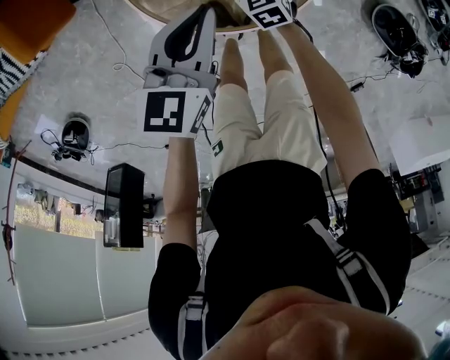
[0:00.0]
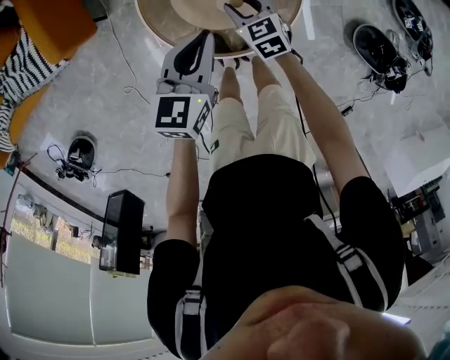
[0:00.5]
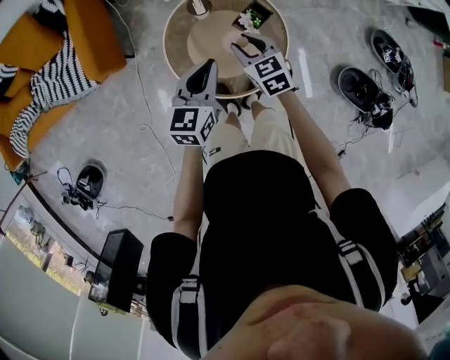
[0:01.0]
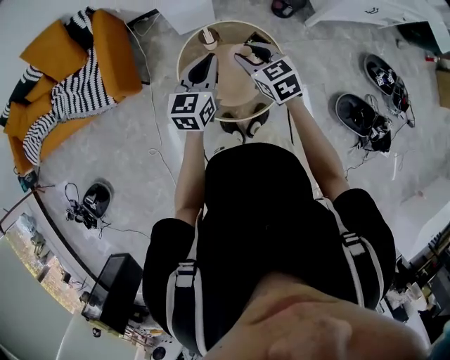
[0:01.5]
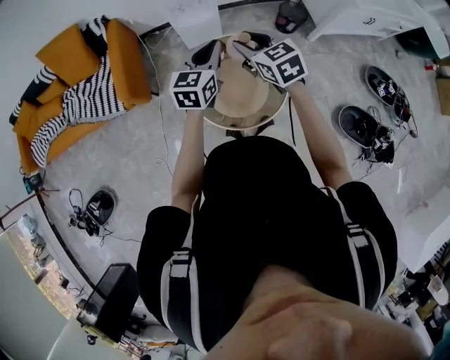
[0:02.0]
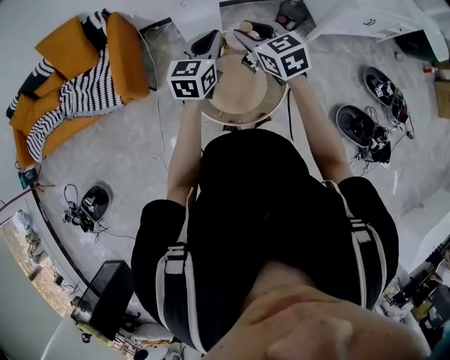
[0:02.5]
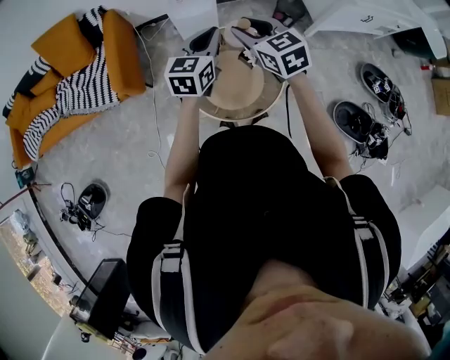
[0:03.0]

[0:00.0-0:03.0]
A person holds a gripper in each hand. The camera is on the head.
0:00.0 to 0:01.5: The left gripper is displaced upward by roughly 25 cm. Meanwhile the right gripper is displaced upward by some 50 cm.
0:01.5 to 0:03.0: The right gripper heads upward, covering roughly 10 cm. Meanwhile the left gripper is displaced upward by approximately 5 cm.

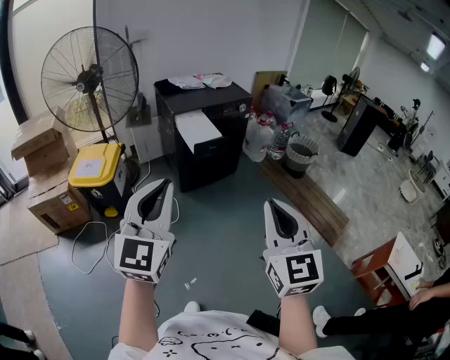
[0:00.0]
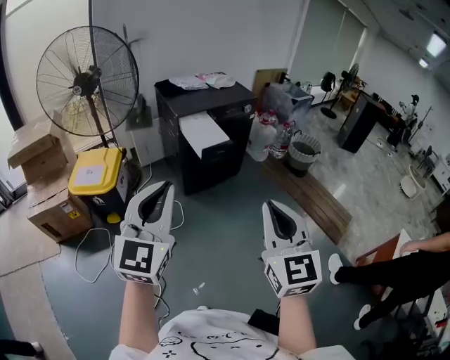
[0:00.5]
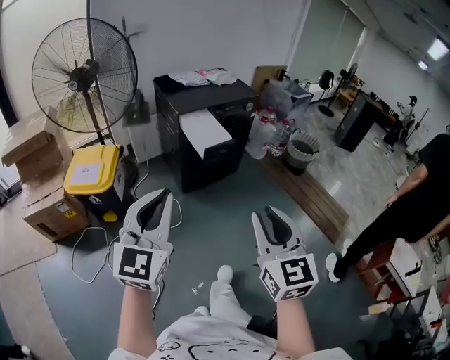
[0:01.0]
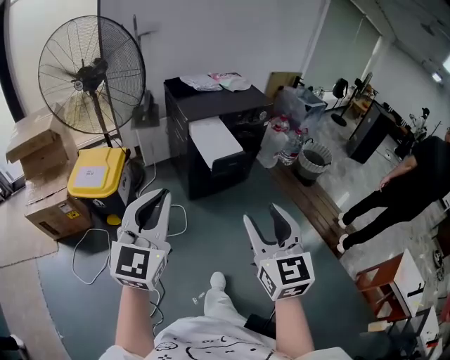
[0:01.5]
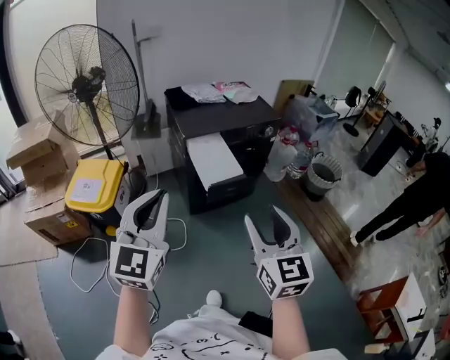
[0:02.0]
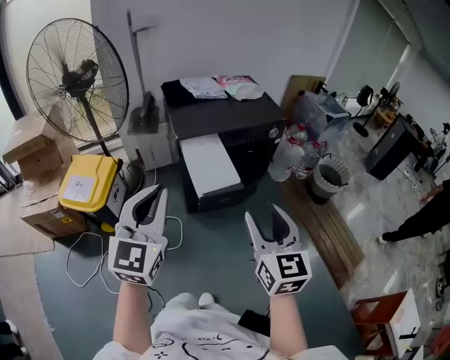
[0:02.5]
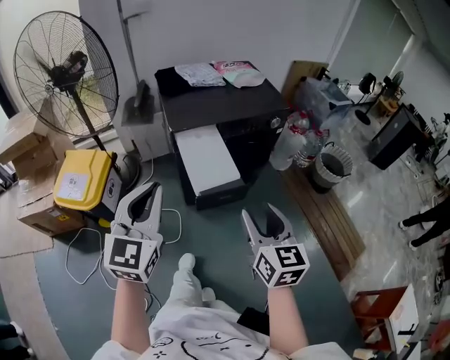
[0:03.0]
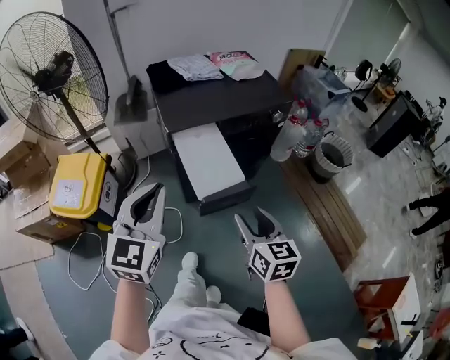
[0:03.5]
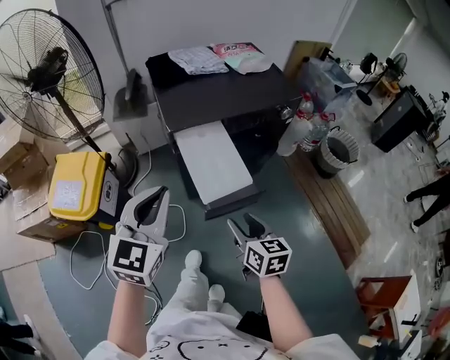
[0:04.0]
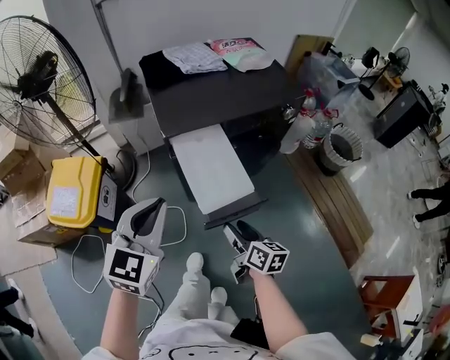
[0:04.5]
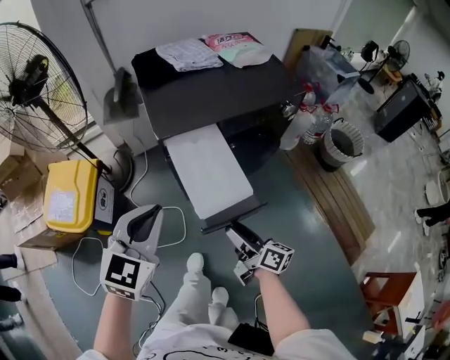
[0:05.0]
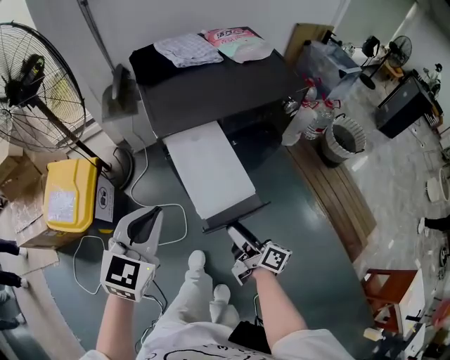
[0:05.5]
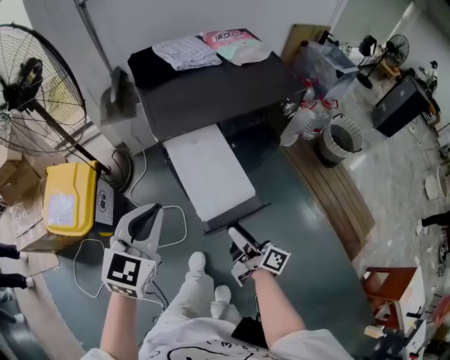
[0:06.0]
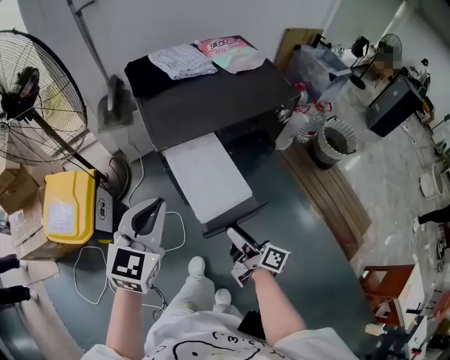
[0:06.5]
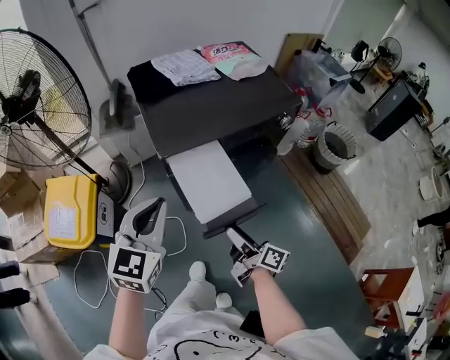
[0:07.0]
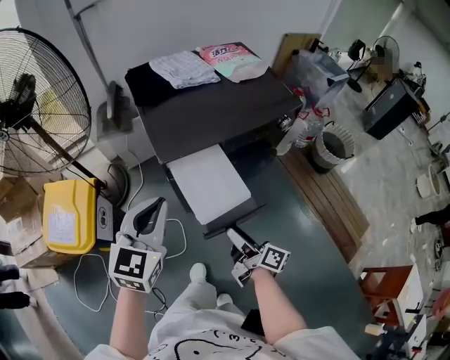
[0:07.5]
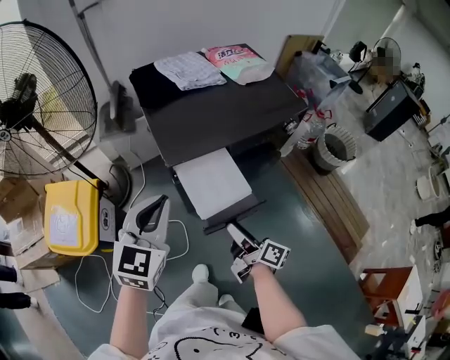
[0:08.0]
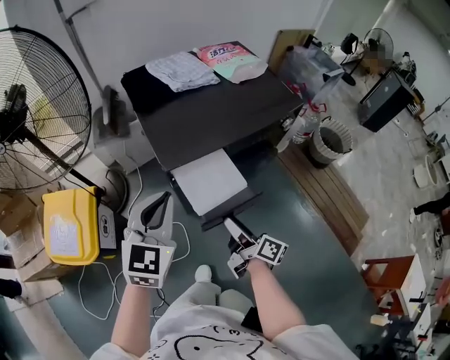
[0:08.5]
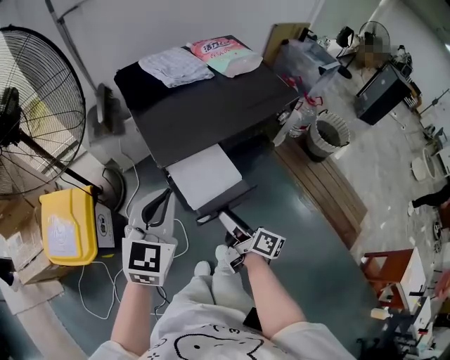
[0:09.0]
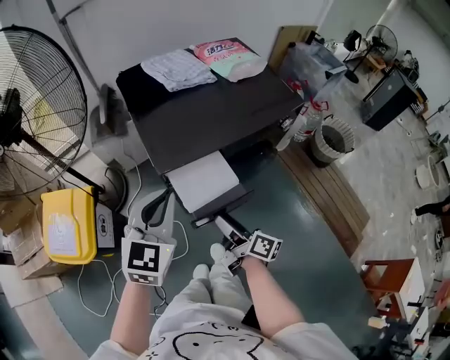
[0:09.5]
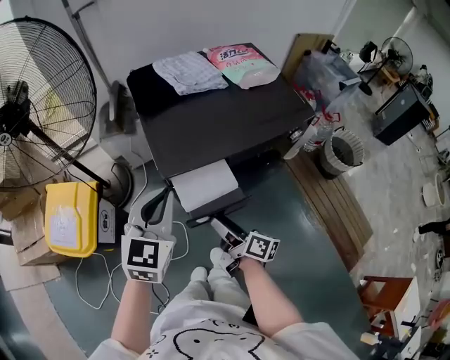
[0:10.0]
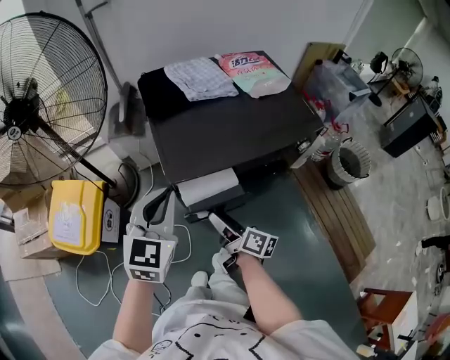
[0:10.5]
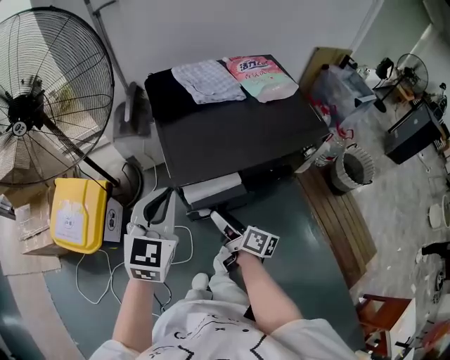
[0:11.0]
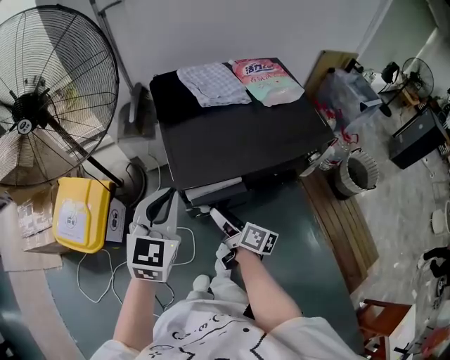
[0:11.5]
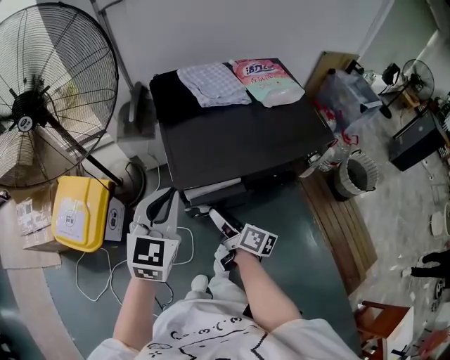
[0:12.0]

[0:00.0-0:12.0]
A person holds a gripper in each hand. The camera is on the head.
0:00.0 to 0:02.0: Both grippers move forward, some 30 cm. The right gripper opens.
0:02.0 to 0:04.0: The left gripper is displaced forward and downward by approximately 25 cm. Meanwhile the right gripper travels downward and forward by some 35 cm, and swivels approximately 40 degrees.
0:04.0 to 0:06.0: The right gripper shifts approximately 5 cm downward, and rotates around the line of its fingers by approximately 40 degrees, clockwise from behind, while the left gripper is displaced downward and forward by some 10 cm.
0:06.0 to 0:08.0: Both grippers travel together forward, approximately 5 cm.
0:08.0 to 0:10.0: Both grippers move forward, some 5 cm.
0:10.0 to 0:12.0: The right gripper moves forward, about 10 cm.

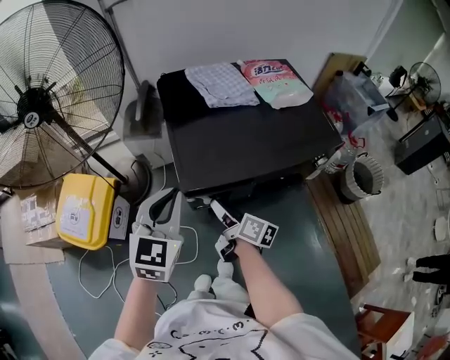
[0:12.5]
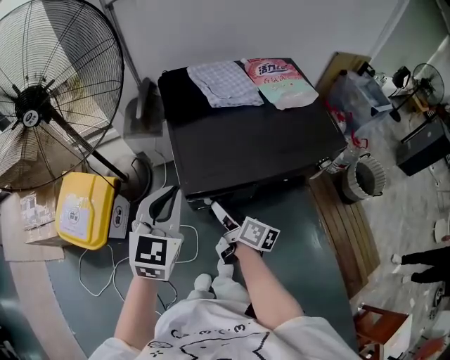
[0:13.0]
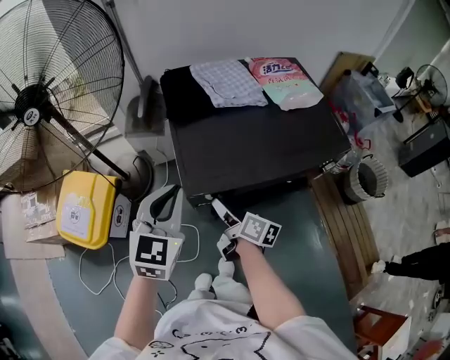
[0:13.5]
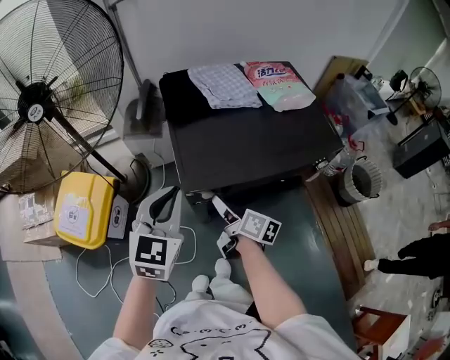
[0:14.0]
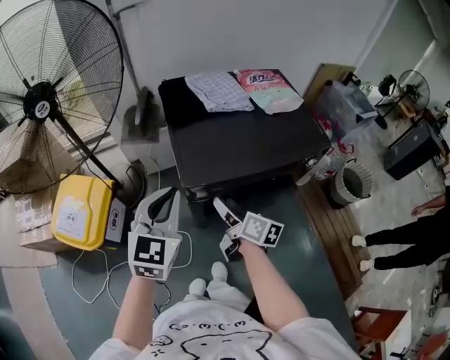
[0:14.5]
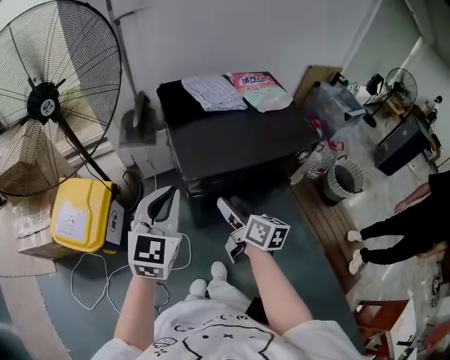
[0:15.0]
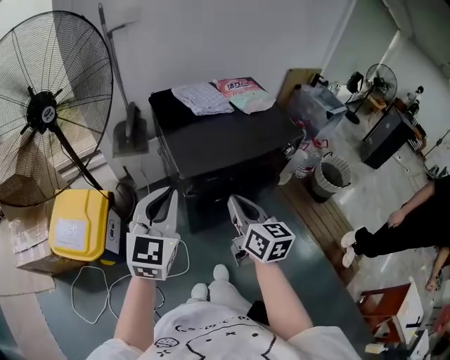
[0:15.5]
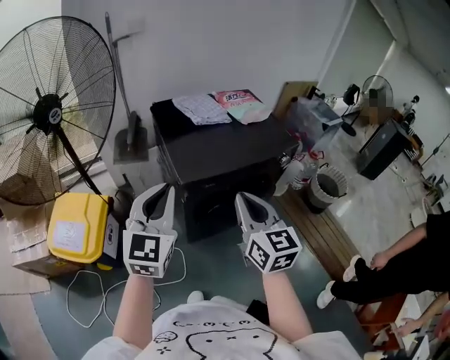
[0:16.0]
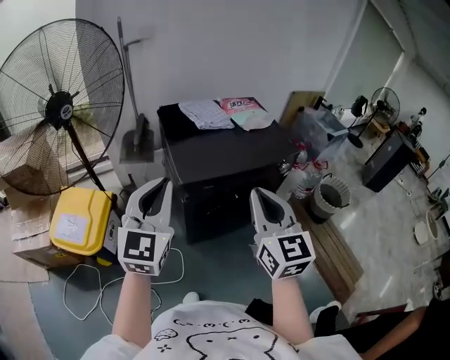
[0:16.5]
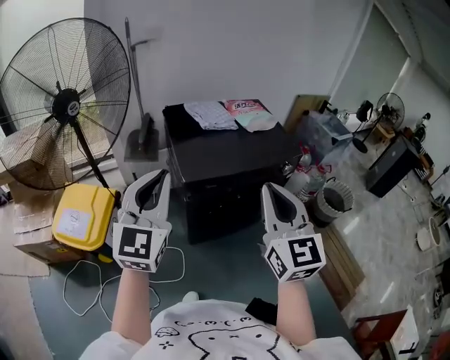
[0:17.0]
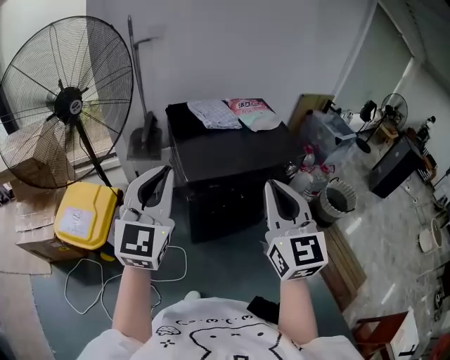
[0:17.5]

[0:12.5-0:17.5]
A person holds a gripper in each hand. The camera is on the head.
0:12.5 to 0:15.0: The left gripper moves backward, roughly 5 cm; the right gripper is displaced upward and backward by roughly 10 cm, and swivels approximately 20 degrees.
0:15.0 to 0:17.5: The right gripper is displaced upward and backward by some 30 cm, rotates around the line of its fingers by approximately 50 degrees, counterclockwise from behind, and closes; the left gripper travels upward and backward by some 15 cm.

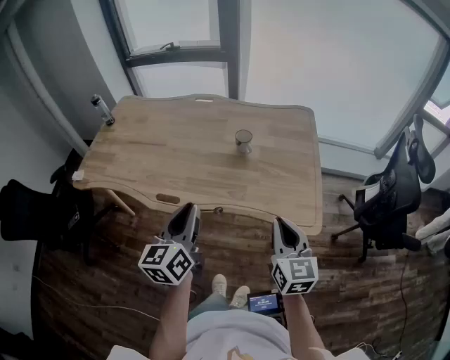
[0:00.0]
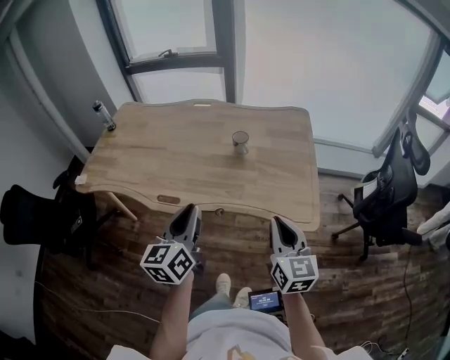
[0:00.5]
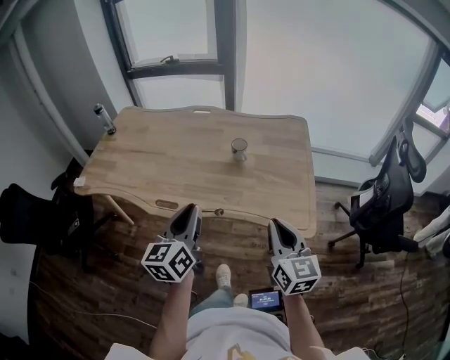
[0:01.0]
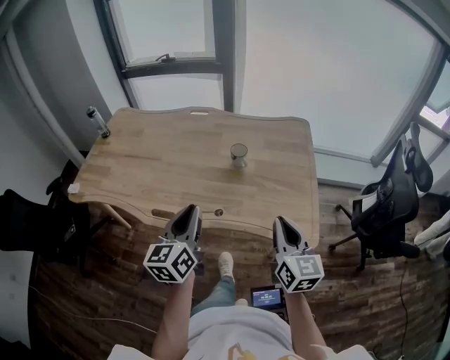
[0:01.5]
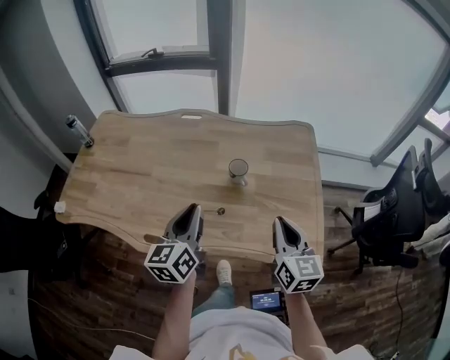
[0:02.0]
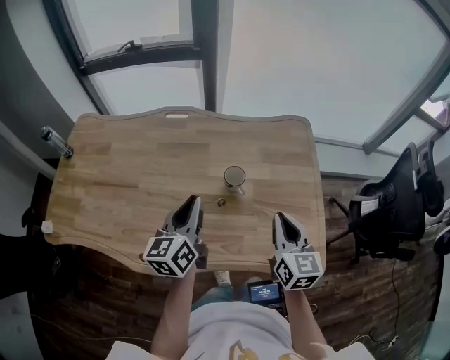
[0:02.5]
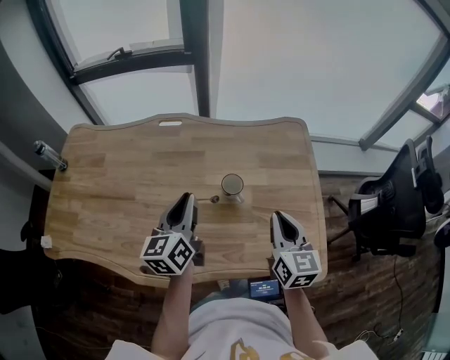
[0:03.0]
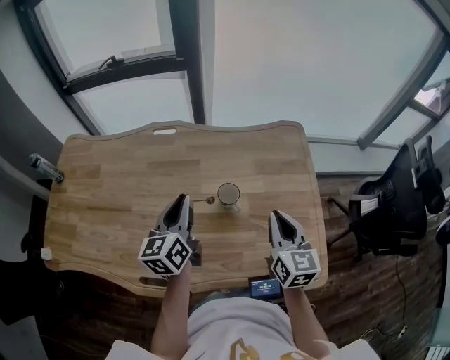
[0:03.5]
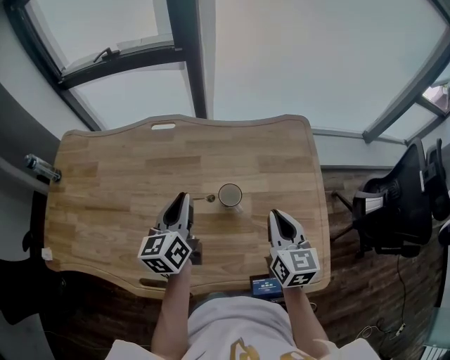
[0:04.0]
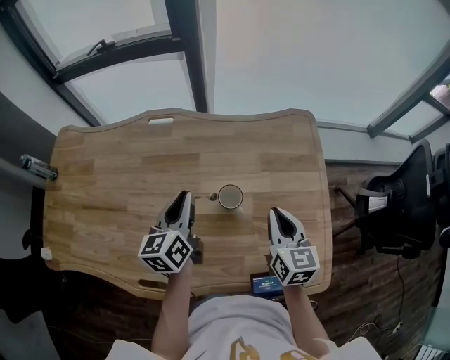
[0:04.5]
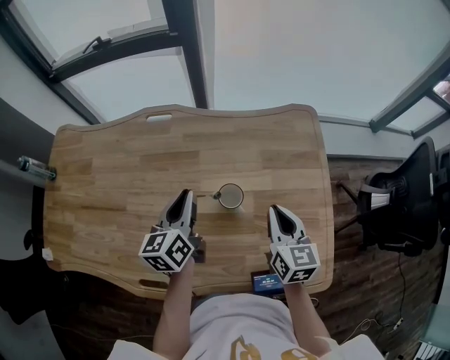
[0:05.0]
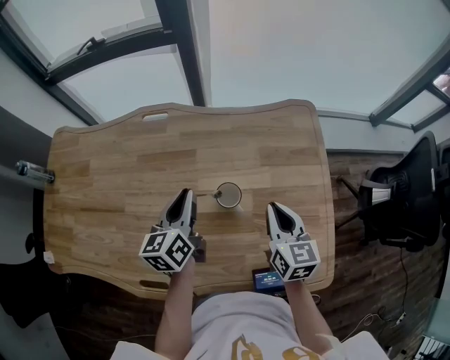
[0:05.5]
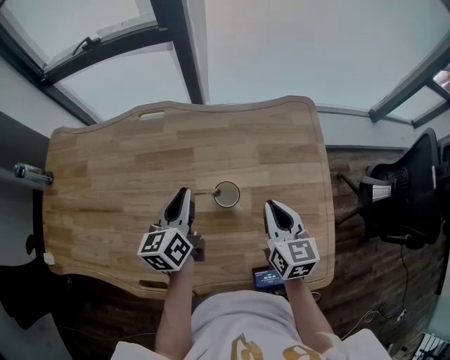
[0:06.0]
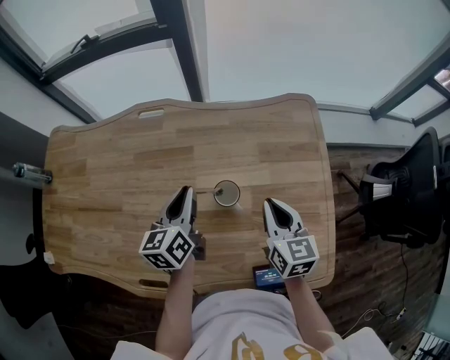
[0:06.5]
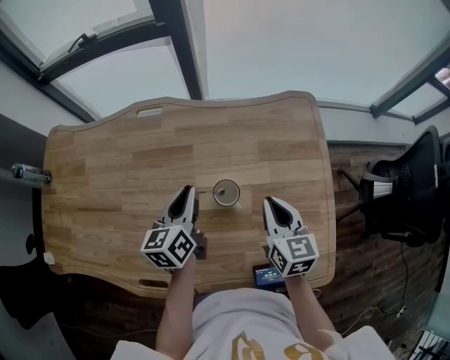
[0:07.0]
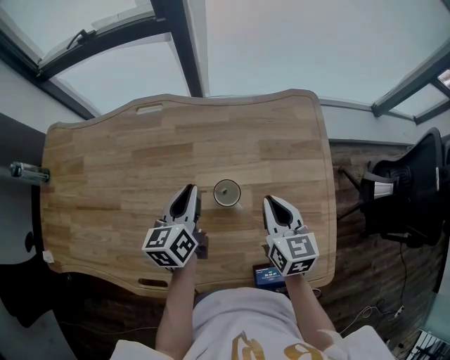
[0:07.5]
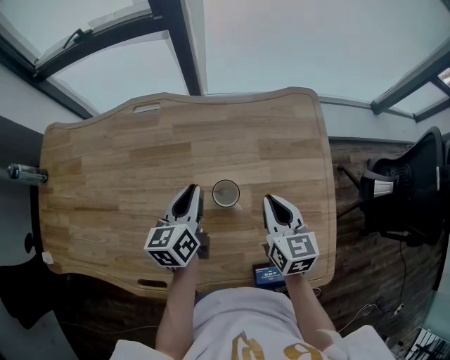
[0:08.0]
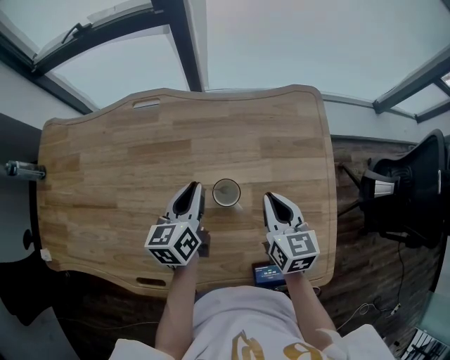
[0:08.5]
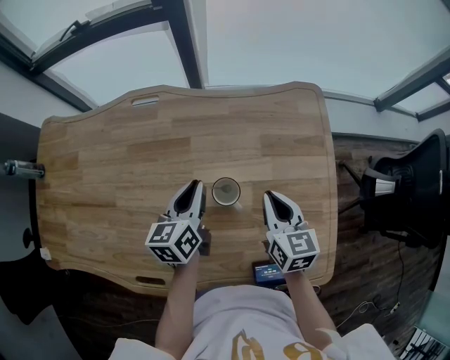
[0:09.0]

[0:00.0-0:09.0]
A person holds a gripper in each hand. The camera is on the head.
0:00.0 to 0:02.0: The grippers both shift forward by about 20 cm.
0:02.0 to 0:04.5: The left gripper travels forward by roughly 25 cm, while the right gripper goes some 20 cm forward and downward.
0:04.5 to 0:07.0: The left gripper moves approximately 5 cm.
0:07.0 to 0:09.0: The grippers stay close to where they were, moving slightly.
